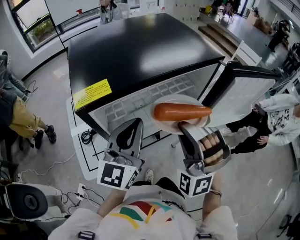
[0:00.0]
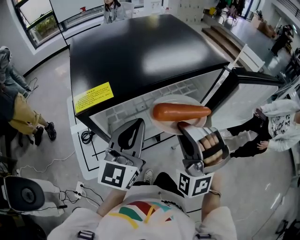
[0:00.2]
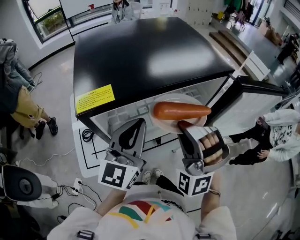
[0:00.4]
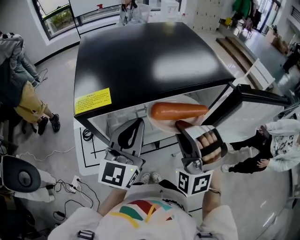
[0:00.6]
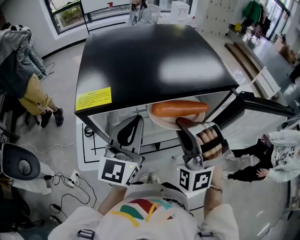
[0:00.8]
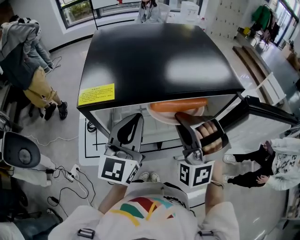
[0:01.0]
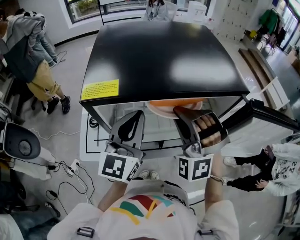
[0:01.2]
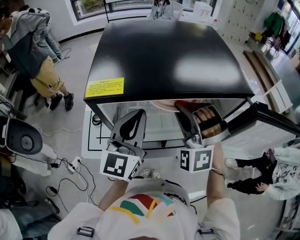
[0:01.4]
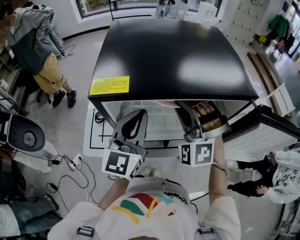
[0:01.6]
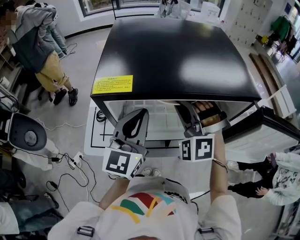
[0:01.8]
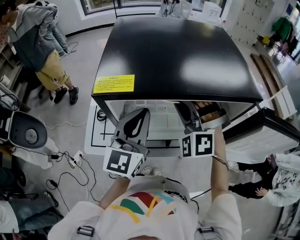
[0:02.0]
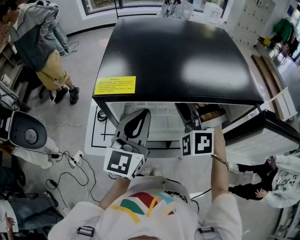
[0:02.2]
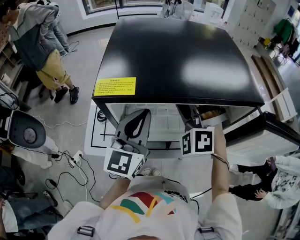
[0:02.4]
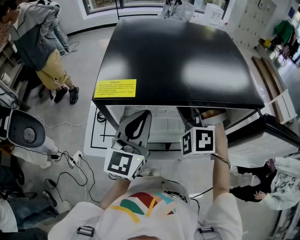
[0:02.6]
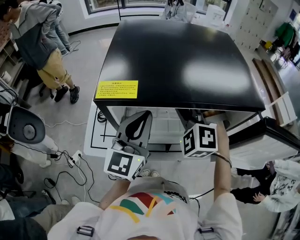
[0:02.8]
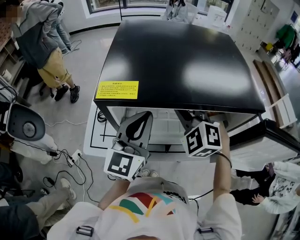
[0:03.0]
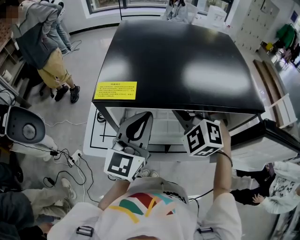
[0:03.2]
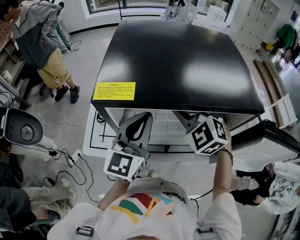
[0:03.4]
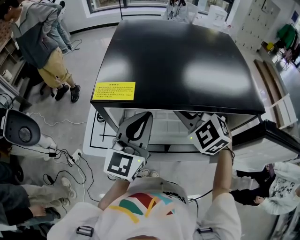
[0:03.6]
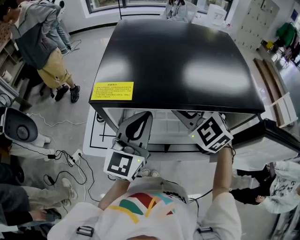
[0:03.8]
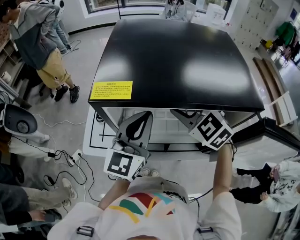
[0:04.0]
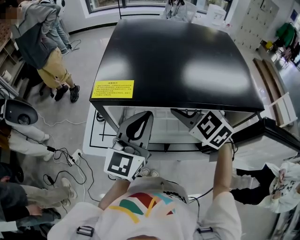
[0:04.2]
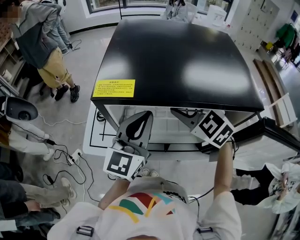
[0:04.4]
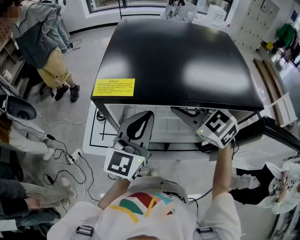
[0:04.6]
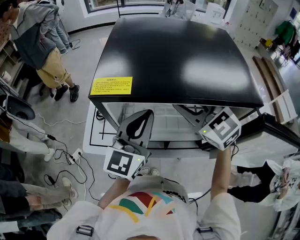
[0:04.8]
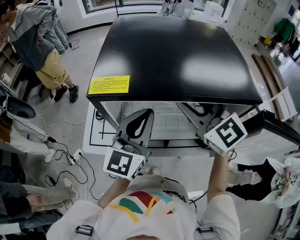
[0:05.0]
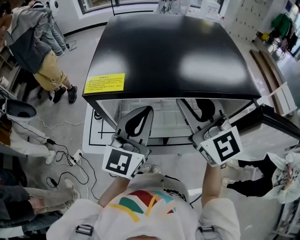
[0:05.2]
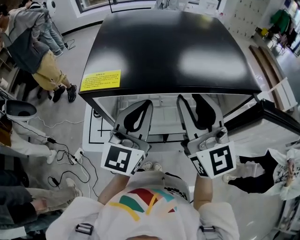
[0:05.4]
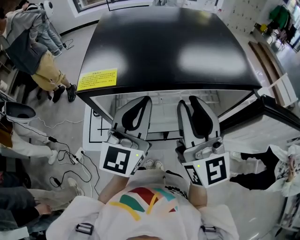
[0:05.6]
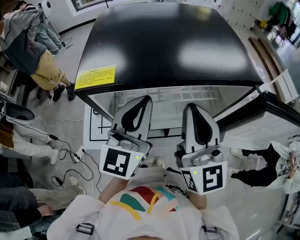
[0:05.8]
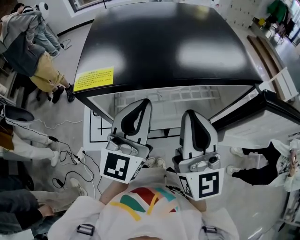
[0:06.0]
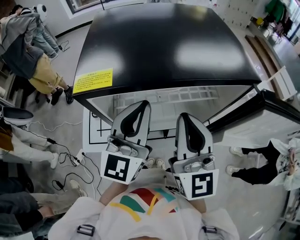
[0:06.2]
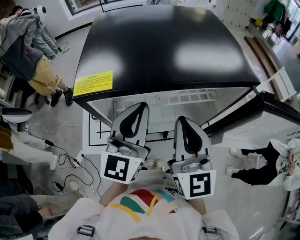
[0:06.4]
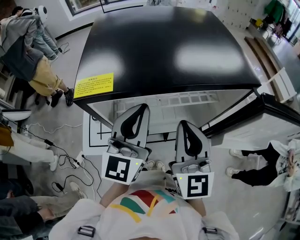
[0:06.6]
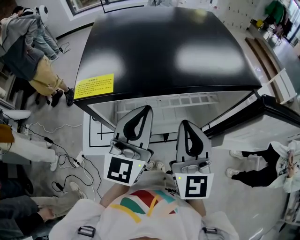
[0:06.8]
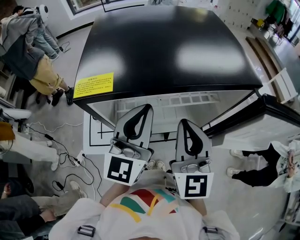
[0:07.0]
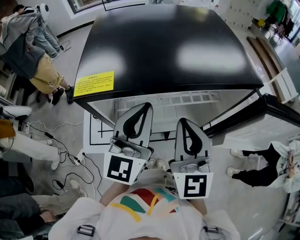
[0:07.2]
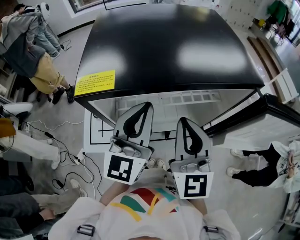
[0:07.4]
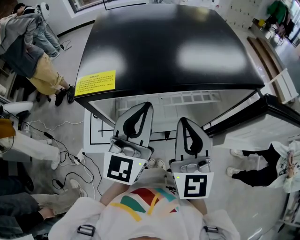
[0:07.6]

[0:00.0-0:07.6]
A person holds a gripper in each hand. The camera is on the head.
0:00.0 to 0:01.6: The left gripper swivels roughly 20 degrees; the right gripper is displaced forward and to the left by approximately 15 cm, and changes its angle by some 30 degrees.
0:01.6 to 0:03.0: The right gripper swivels some 30 degrees.
0:03.0 to 0:04.6: The right gripper rotates roughly 40 degrees.
0:04.6 to 0:06.0: The right gripper travels backward and upward by roughly 15 cm, tips its fingers upward by about 40 degrees, and closes its fingers.
0:06.0 to 0:07.6: There are only small adjustments of the grippers.

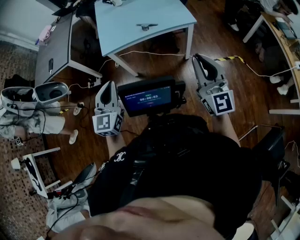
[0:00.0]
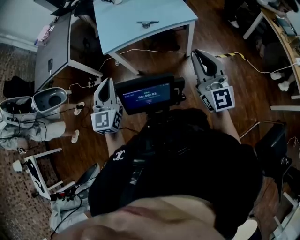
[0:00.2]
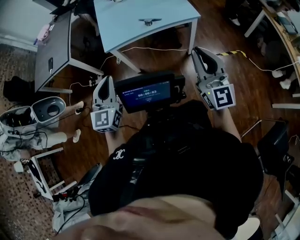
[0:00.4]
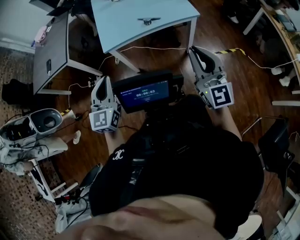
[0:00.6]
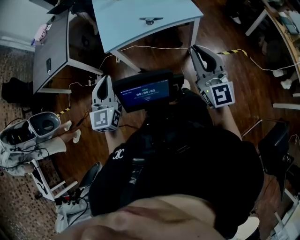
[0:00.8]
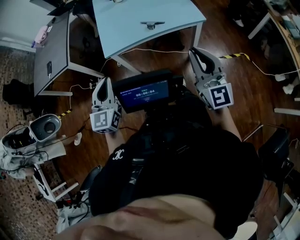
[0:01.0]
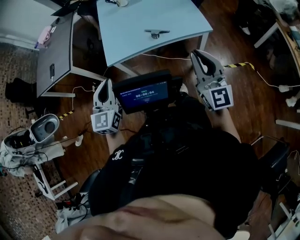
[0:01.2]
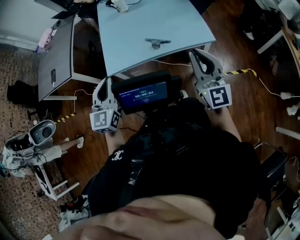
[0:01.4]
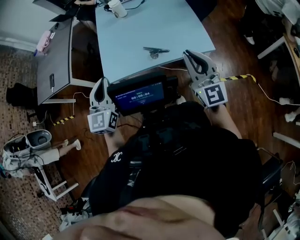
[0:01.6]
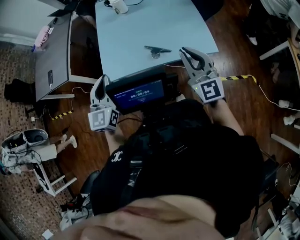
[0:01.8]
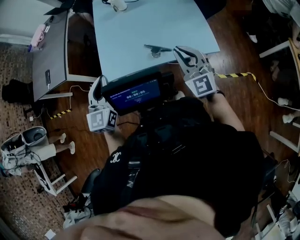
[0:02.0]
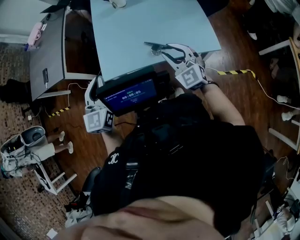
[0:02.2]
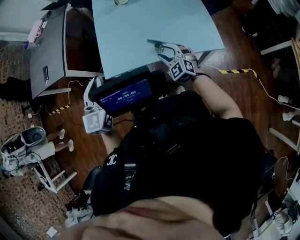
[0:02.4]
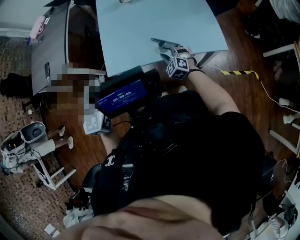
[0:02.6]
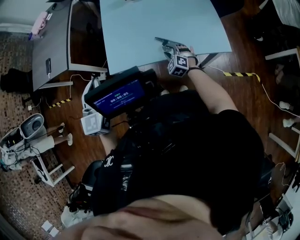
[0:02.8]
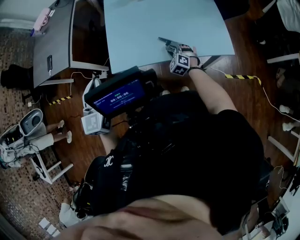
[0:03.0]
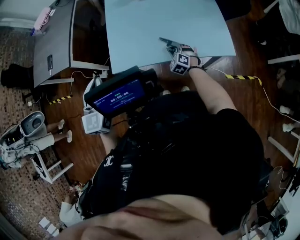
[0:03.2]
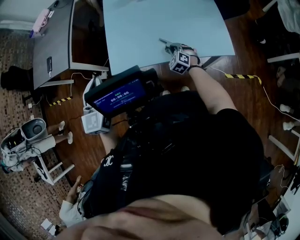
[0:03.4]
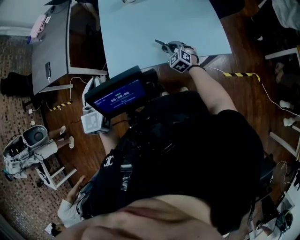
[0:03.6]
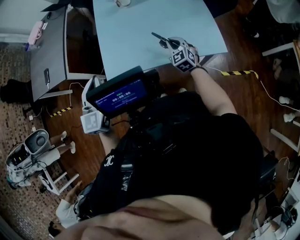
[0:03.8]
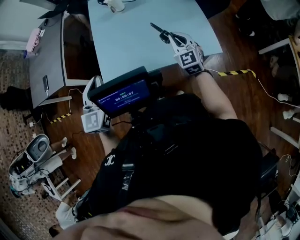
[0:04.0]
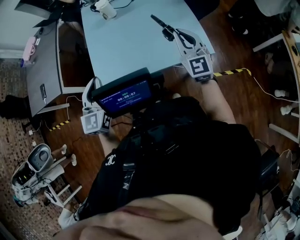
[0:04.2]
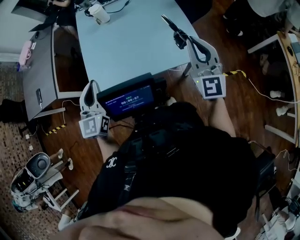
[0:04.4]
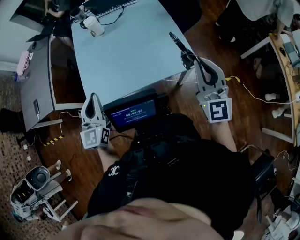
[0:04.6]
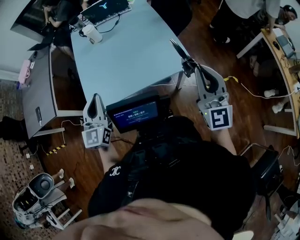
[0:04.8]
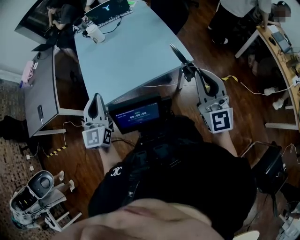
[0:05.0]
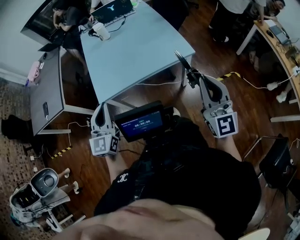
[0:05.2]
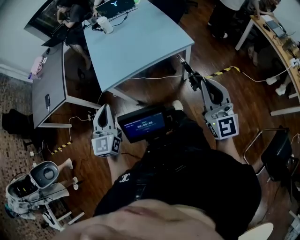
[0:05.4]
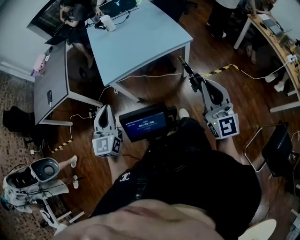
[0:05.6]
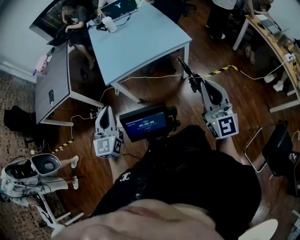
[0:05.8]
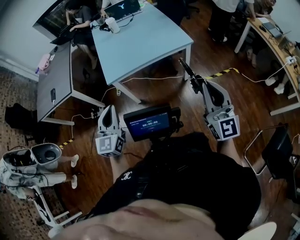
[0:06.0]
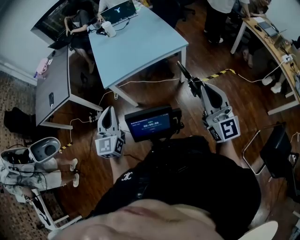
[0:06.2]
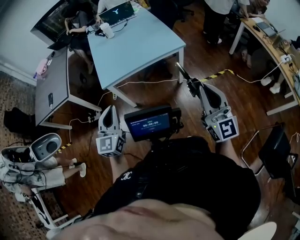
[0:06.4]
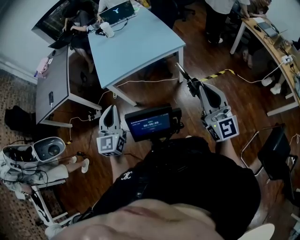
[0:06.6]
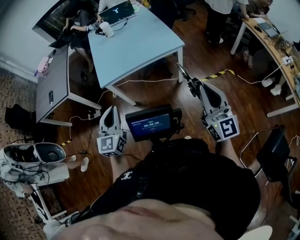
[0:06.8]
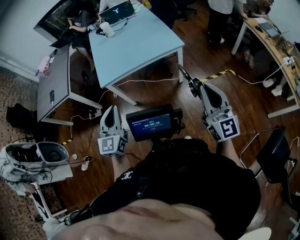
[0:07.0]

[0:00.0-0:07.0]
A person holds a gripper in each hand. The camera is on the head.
0:00.0 to 0:01.4: Both grippers move forward, approximately 30 cm.
0:01.4 to 0:02.8: The left gripper goes some 15 cm forward and to the left. Meanwhile the right gripper travels downward and forward by roughly 50 cm, tilts its fingers approximately 50 degrees downward, and opens its fingers.
0:02.8 to 0:04.2: The left gripper moves forward, about 10 cm; the right gripper moves upward, some 30 cm, angles its fingers upward, by some 40 degrees, and closes its fingers.
0:04.2 to 0:05.6: Both grippers are carried backward, approximately 50 cm.
0:05.6 to 0:07.0: The grippers both shift to the right by roughly 10 cm.

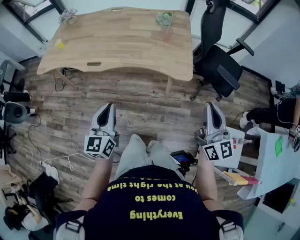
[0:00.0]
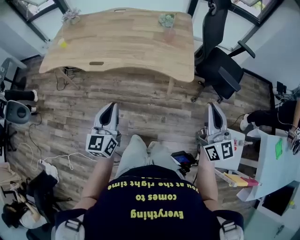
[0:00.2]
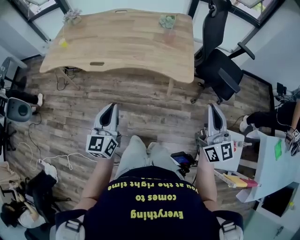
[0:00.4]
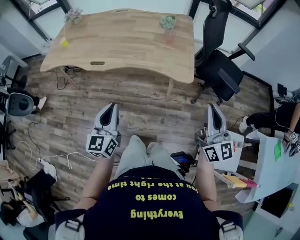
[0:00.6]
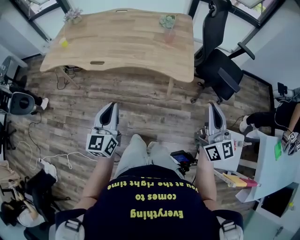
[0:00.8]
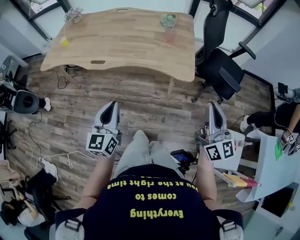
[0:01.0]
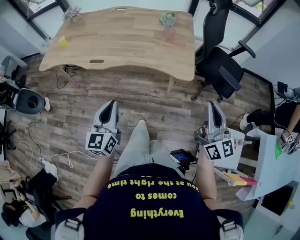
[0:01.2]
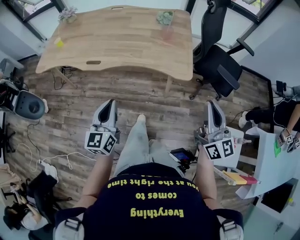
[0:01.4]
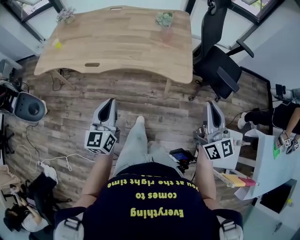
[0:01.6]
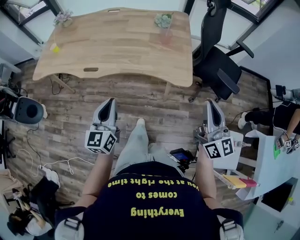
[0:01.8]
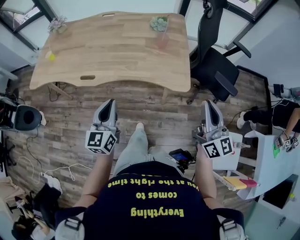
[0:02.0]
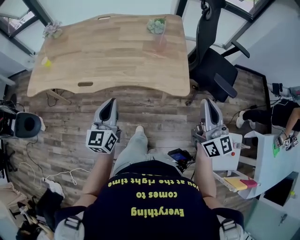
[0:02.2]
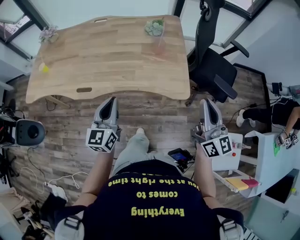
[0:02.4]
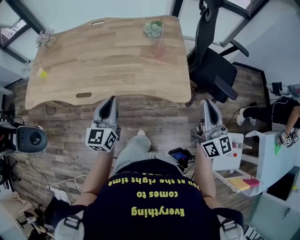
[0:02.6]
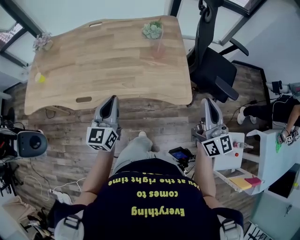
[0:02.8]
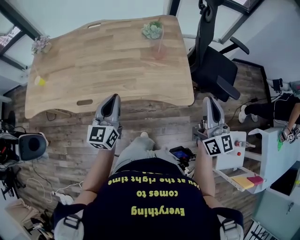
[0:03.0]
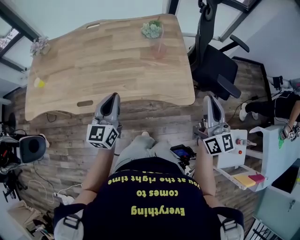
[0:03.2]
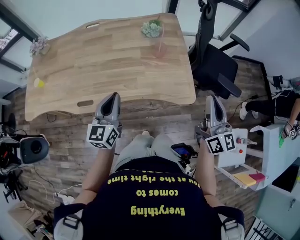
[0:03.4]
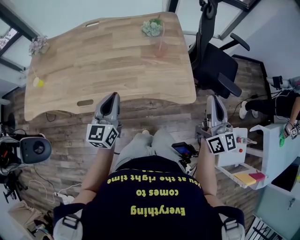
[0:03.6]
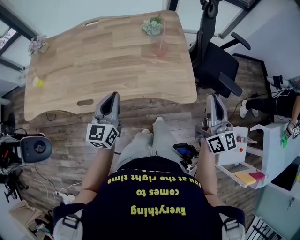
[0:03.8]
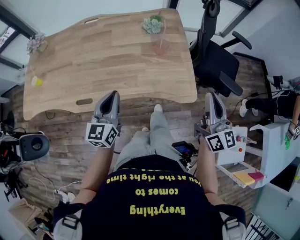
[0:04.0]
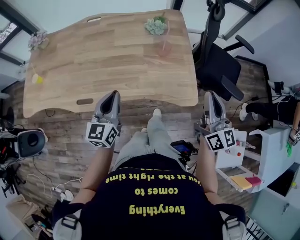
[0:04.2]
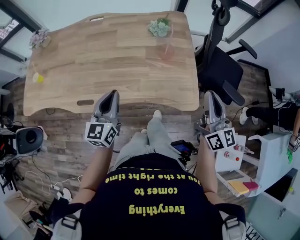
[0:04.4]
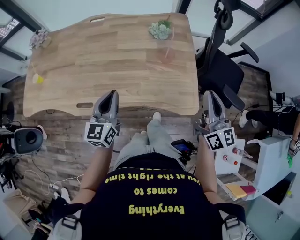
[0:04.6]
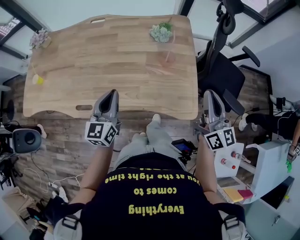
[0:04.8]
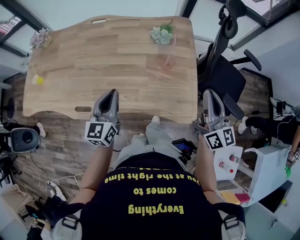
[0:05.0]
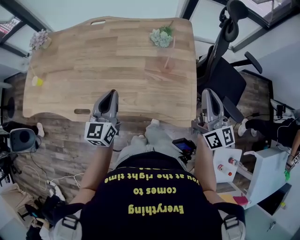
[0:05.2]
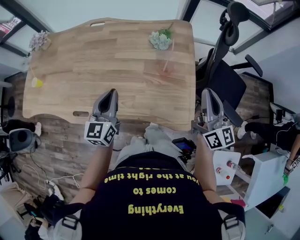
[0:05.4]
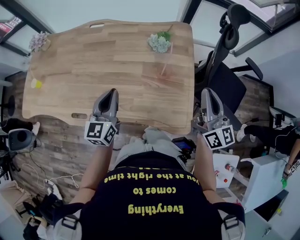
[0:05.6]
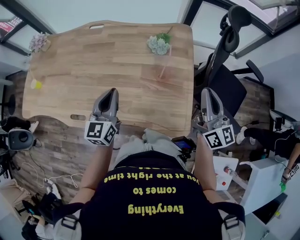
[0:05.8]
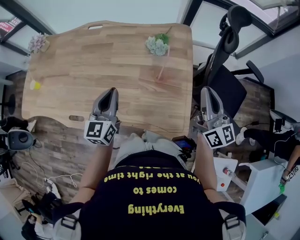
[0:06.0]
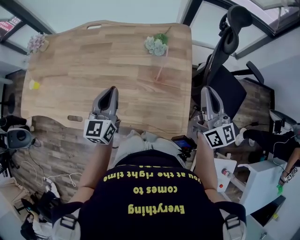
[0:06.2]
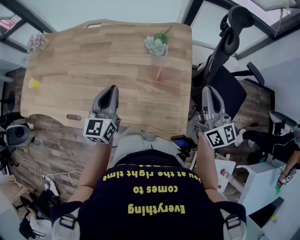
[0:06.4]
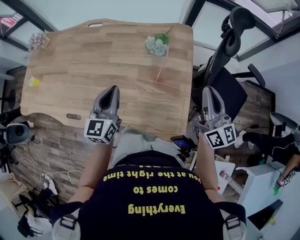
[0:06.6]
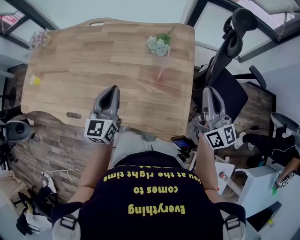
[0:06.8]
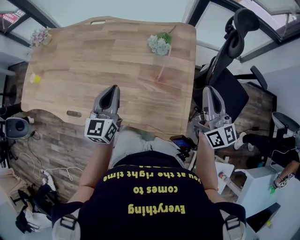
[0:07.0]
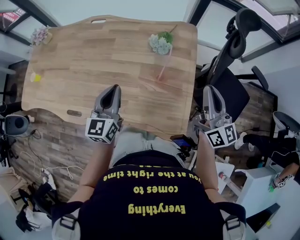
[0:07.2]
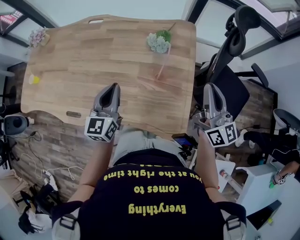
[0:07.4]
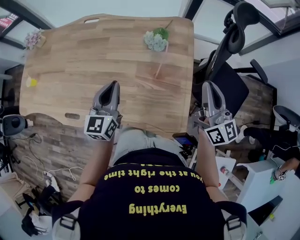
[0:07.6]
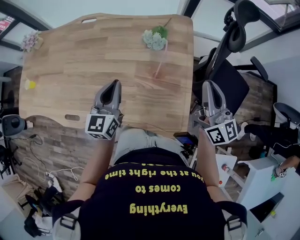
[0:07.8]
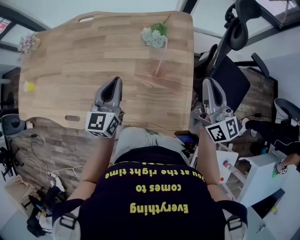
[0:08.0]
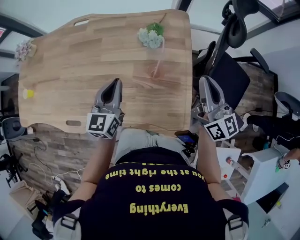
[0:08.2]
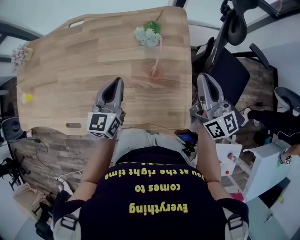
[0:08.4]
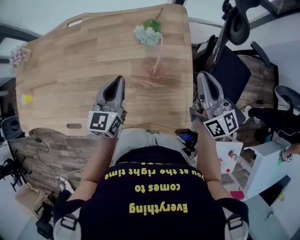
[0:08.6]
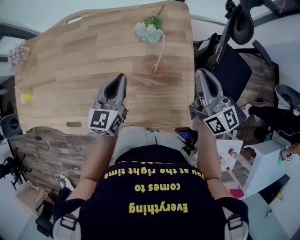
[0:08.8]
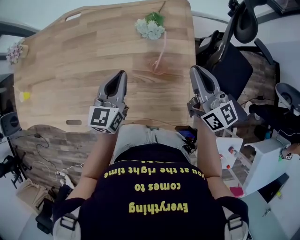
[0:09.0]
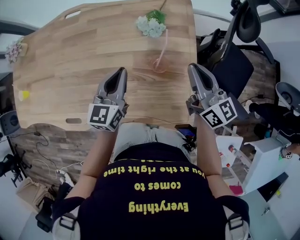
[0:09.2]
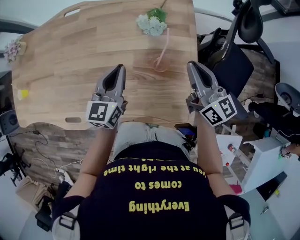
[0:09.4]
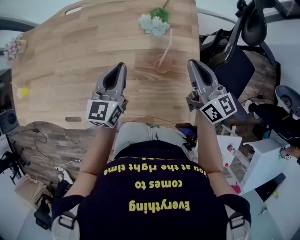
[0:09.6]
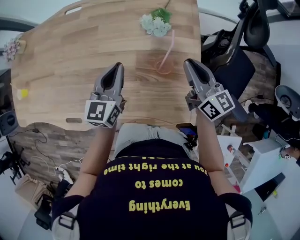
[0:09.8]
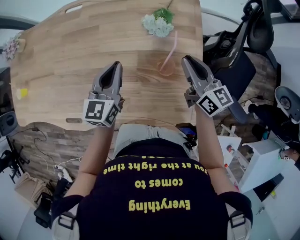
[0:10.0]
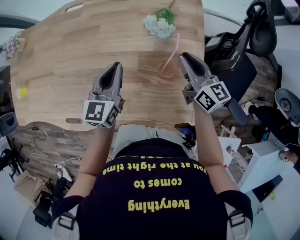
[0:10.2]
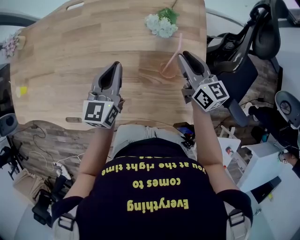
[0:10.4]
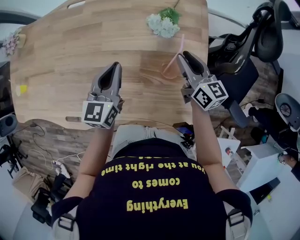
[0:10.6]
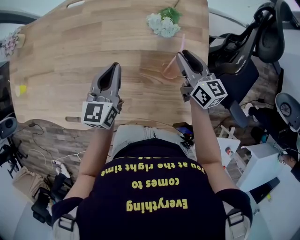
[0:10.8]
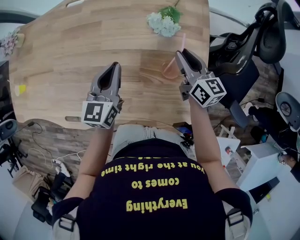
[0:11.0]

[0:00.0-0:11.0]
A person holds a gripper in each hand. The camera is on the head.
0:00.0 to 0:01.6: The grippers make only small movements.
0:01.6 to 0:03.2: The two grippers go approximately 20 cm forward.
0:03.2 to 0:04.8: The grippers both shift forward by roughly 10 cm.
0:04.8 to 0:06.2: The two grippers go approximately 15 cm forward and to the right.
0:06.2 to 0:07.8: The grippers make only small movements.
0:07.8 to 0:09.4: The left gripper heads forward, covering about 5 cm, while the right gripper heads downward, to the left and forward, covering about 10 cm.
0:09.4 to 0:11.0: The left gripper moves roughly 5 cm. The right gripper moves downward and forward, some 15 cm, and opens its fingers.
